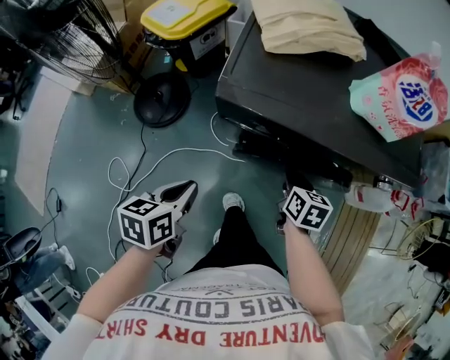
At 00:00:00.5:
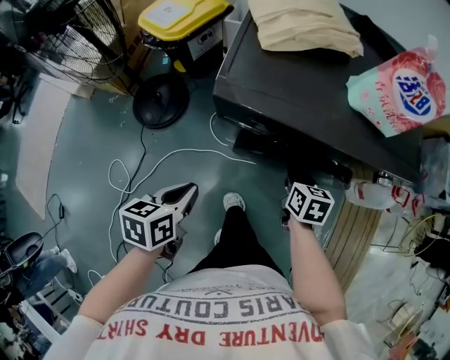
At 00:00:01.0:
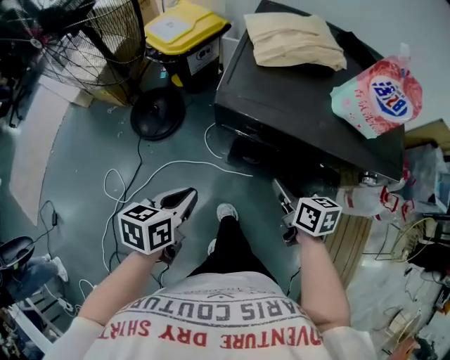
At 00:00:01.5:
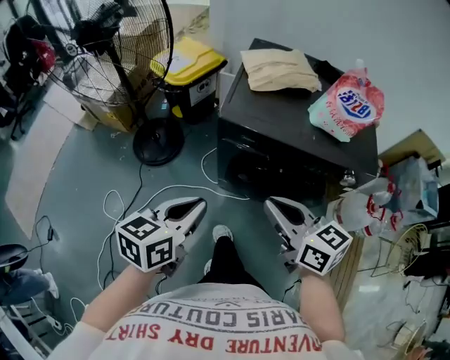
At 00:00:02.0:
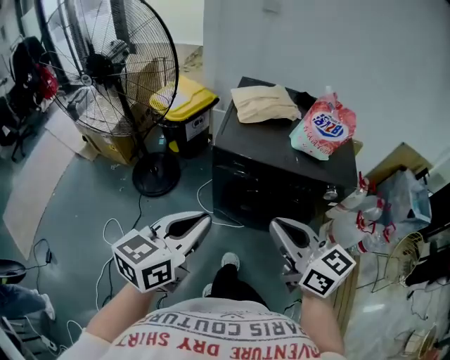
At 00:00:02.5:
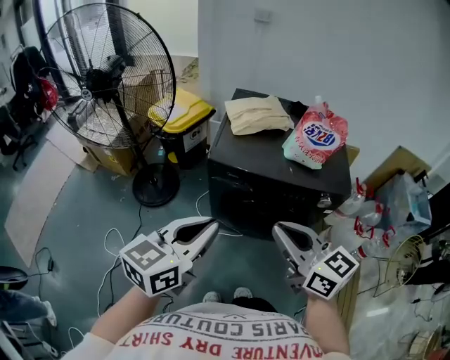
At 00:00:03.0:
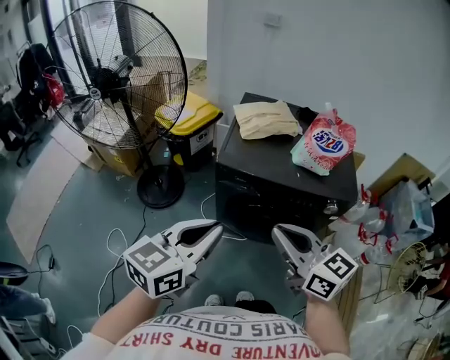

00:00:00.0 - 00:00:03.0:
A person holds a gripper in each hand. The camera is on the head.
00:00:00.0 - 00:00:01.5: The left gripper shifts about 15 cm upward and backward, and changes its angle by approximately 20 degrees. The right gripper shifts about 30 cm upward and backward, and tips its fingers upward by about 30 degrees.
00:00:01.5 - 00:00:03.0: Both grippers travel together upward, some 10 cm.

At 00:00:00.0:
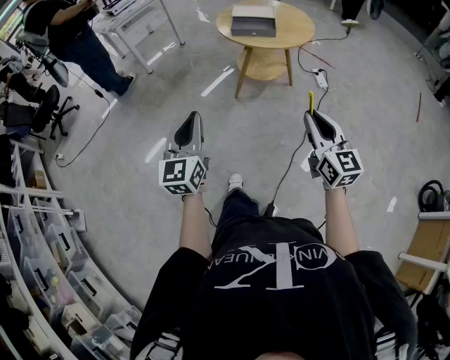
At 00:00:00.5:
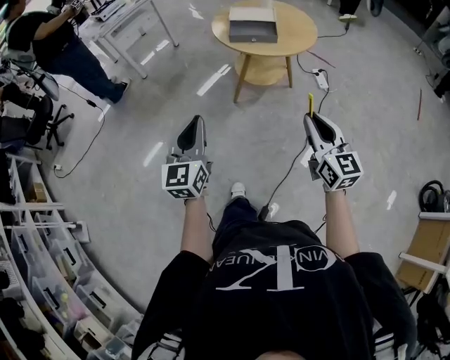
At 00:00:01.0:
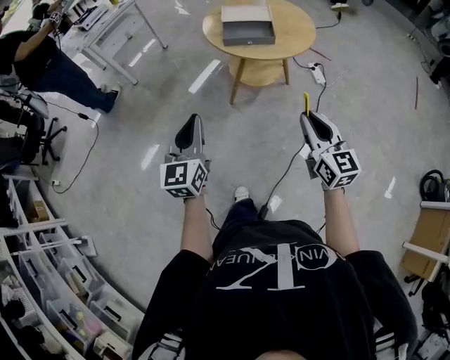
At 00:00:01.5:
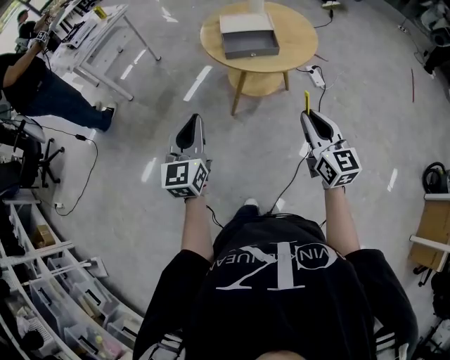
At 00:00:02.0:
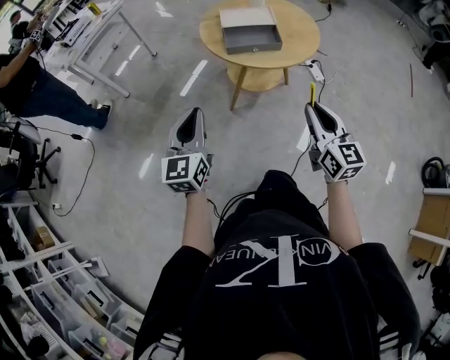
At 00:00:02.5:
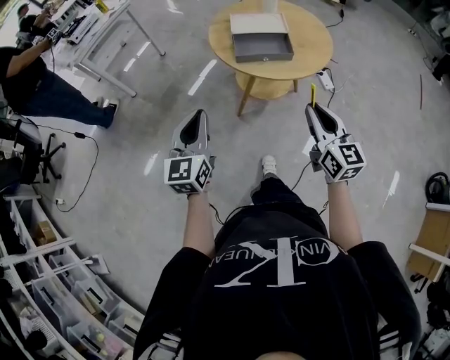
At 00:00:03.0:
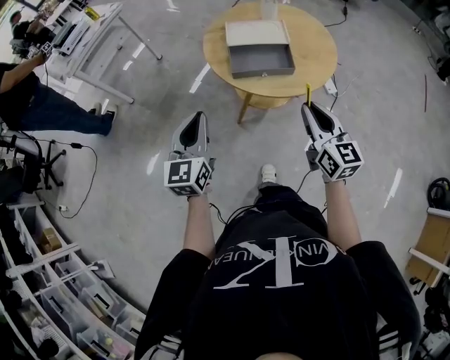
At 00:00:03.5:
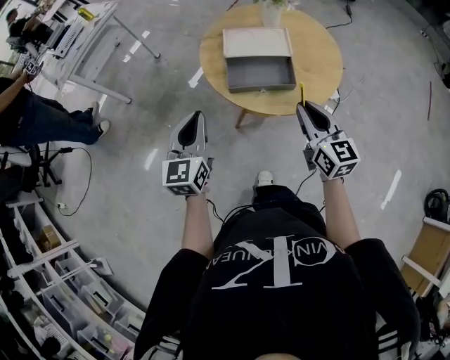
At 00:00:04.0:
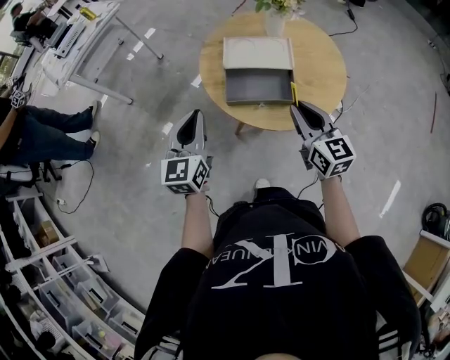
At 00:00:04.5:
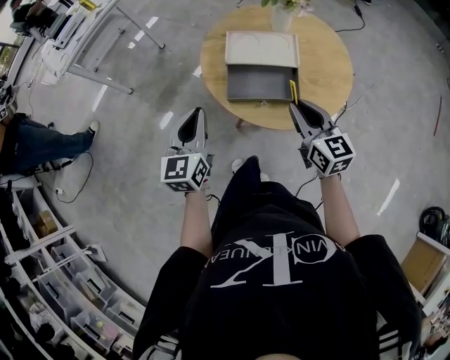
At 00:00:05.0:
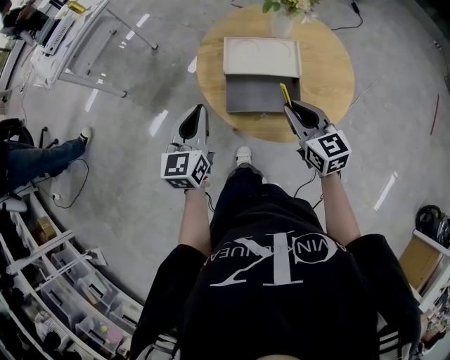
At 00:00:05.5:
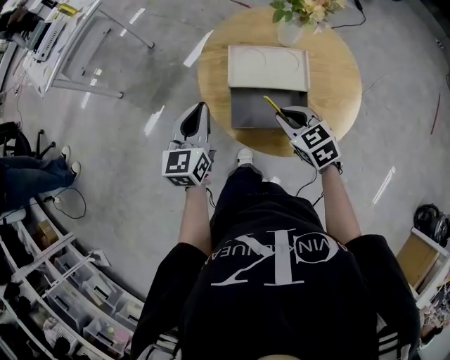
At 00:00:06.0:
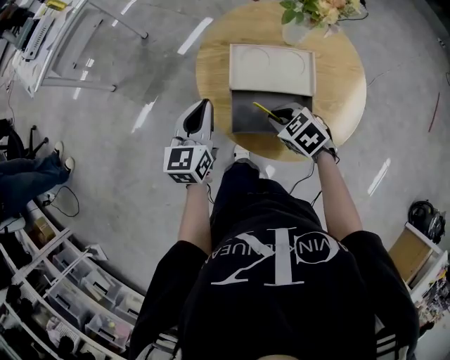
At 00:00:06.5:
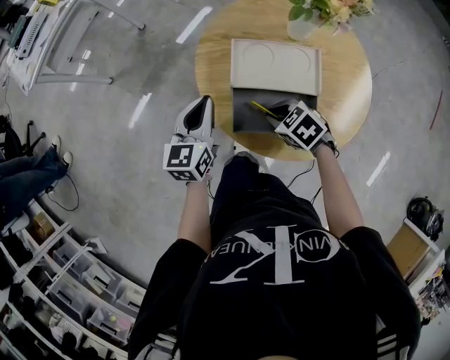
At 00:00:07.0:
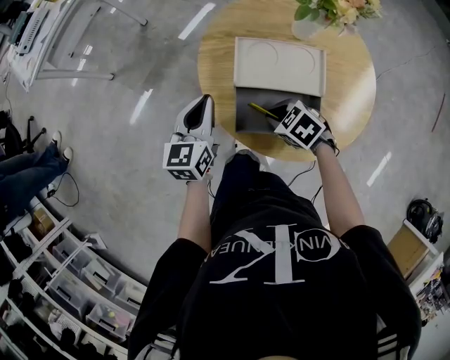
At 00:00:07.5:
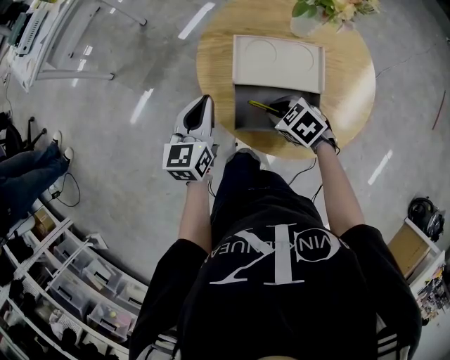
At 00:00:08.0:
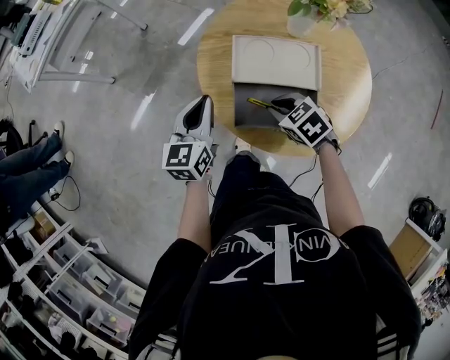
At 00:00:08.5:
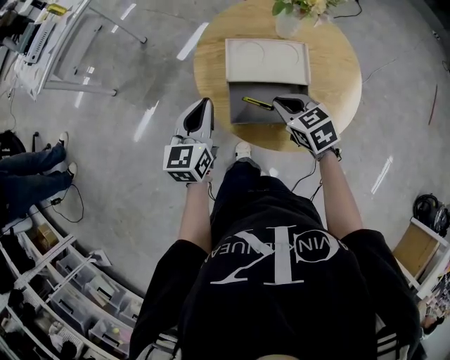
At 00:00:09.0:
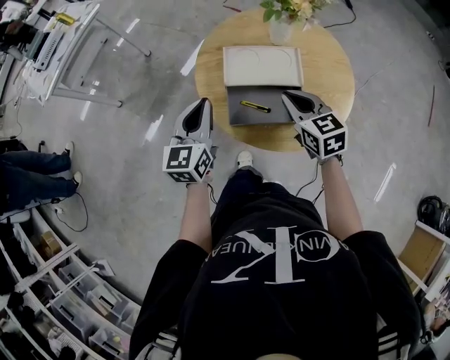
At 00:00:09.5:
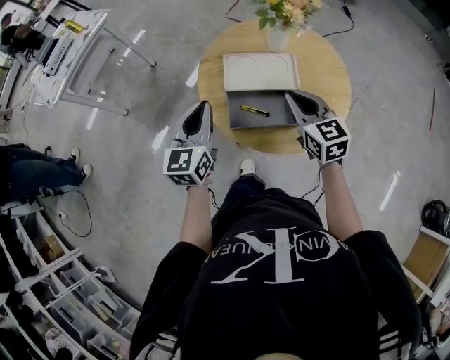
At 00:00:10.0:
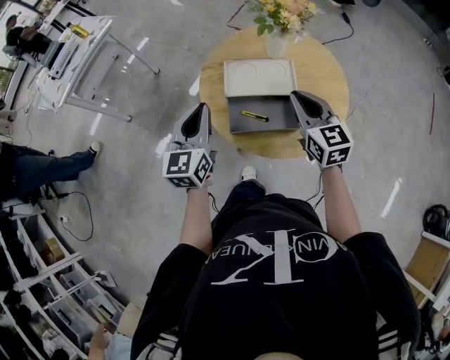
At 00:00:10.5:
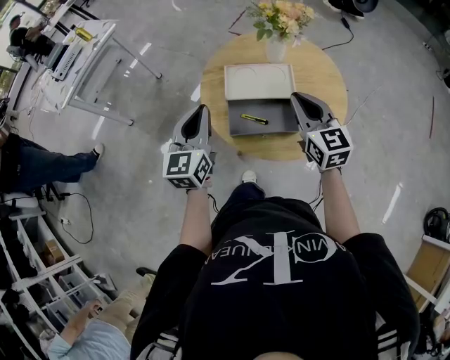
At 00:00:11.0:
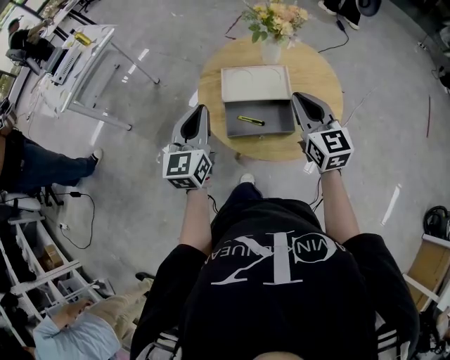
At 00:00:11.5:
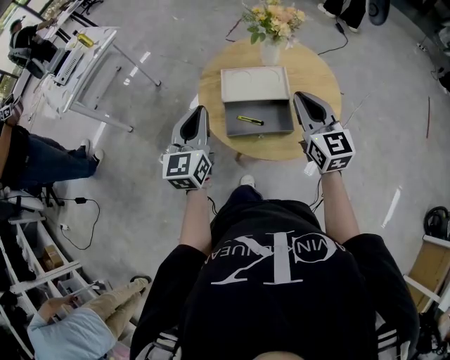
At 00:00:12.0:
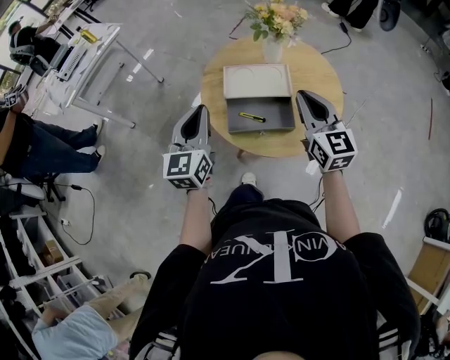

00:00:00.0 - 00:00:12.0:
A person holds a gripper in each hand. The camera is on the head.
00:00:00.0 - 00:00:02.0: The two grippers go some 30 cm forward.
00:00:02.0 - 00:00:04.0: The two grippers go some 30 cm forward.
00:00:04.0 - 00:00:06.0: The right gripper shifts roughly 20 cm downward, forward and to the left, and tips its fingers downward by some 50 degrees; the left gripper goes approximately 20 cm forward and downward.
00:00:06.0 - 00:00:08.0: There are only small adjustments of the grippers.
00:00:08.0 - 00:00:10.0: The left gripper moves upward, roughly 10 cm; the right gripper shifts approximately 20 cm upward and to the right, and angles its fingers upward, by about 40 degrees.
00:00:10.0 - 00:00:12.0: The right gripper shifts by roughly 5 cm.

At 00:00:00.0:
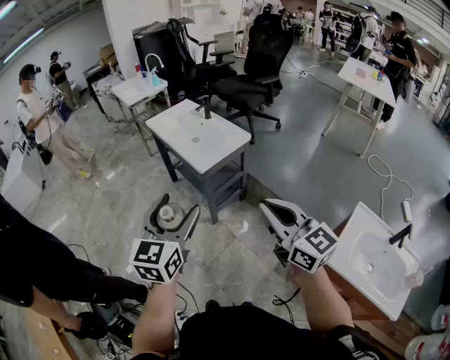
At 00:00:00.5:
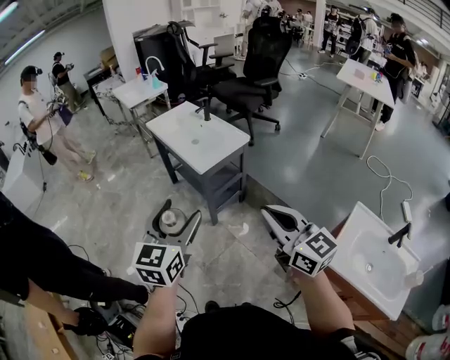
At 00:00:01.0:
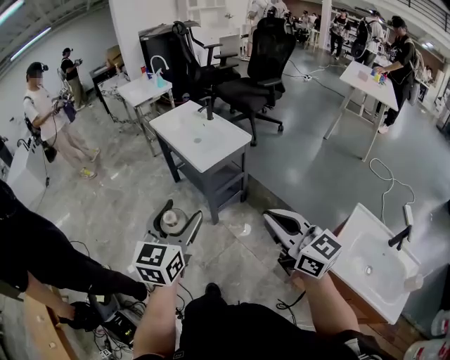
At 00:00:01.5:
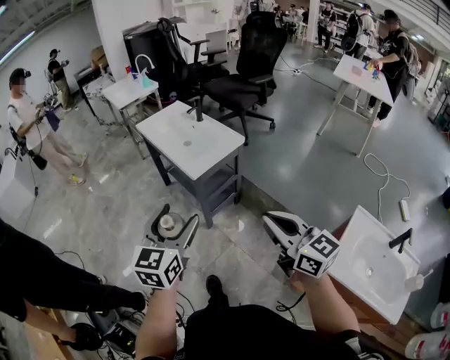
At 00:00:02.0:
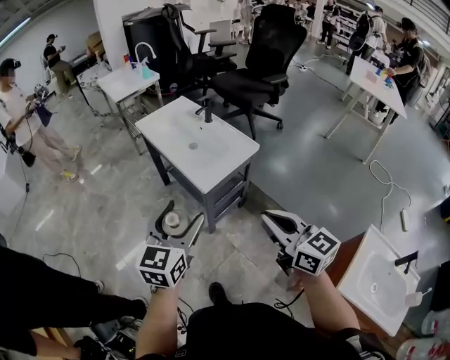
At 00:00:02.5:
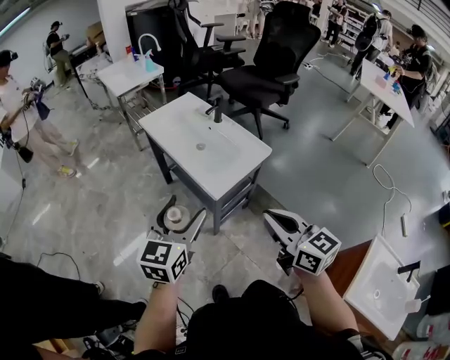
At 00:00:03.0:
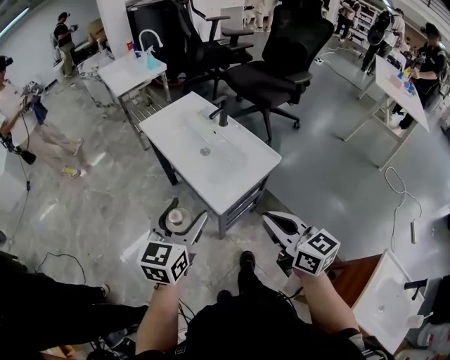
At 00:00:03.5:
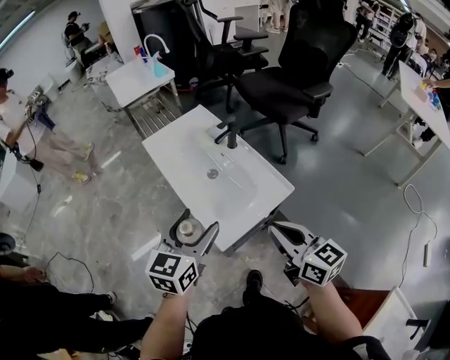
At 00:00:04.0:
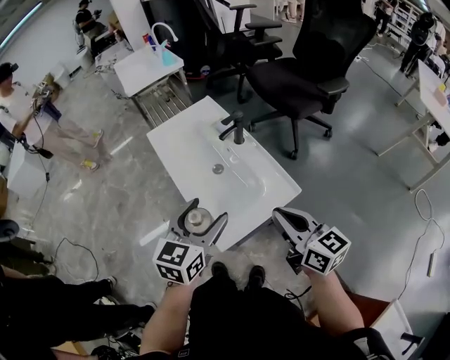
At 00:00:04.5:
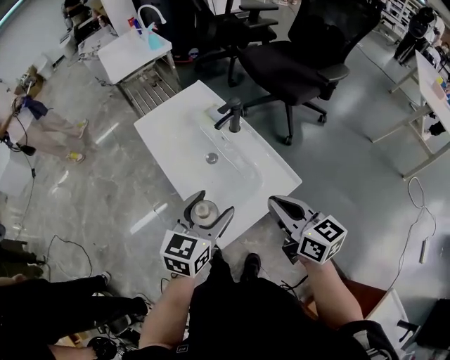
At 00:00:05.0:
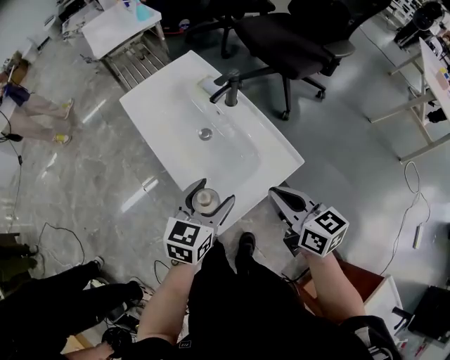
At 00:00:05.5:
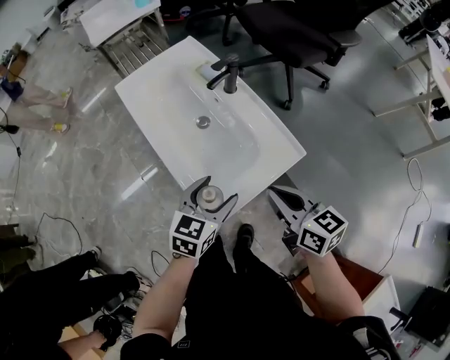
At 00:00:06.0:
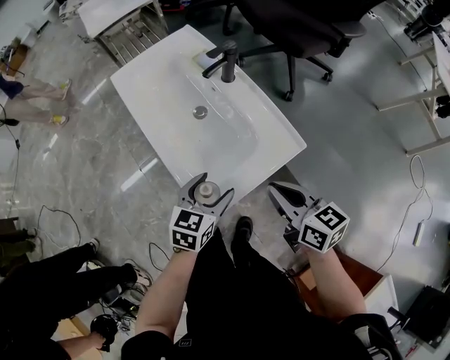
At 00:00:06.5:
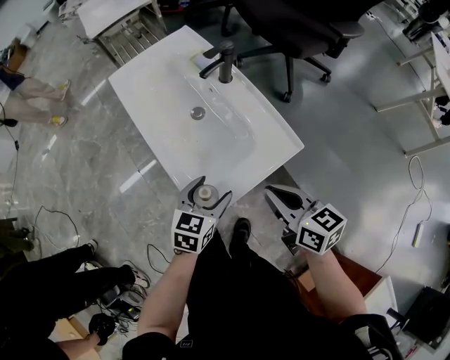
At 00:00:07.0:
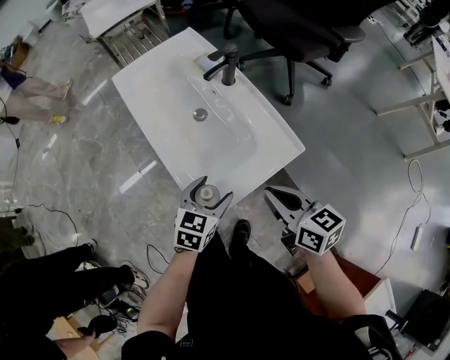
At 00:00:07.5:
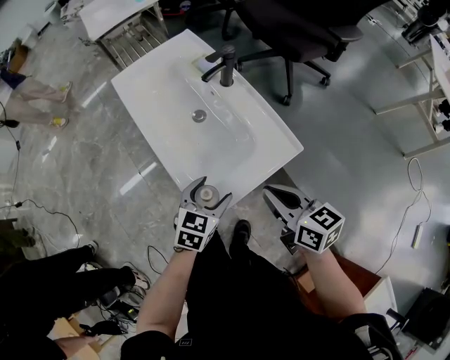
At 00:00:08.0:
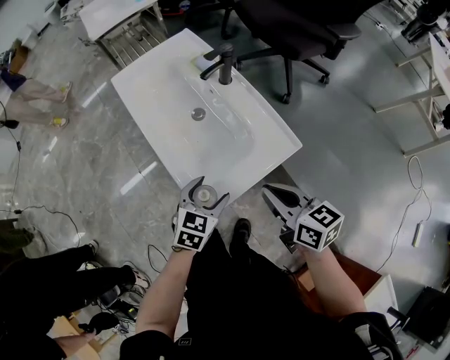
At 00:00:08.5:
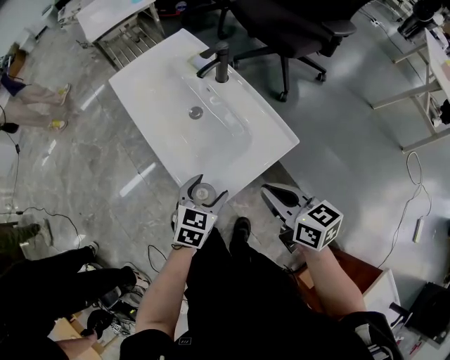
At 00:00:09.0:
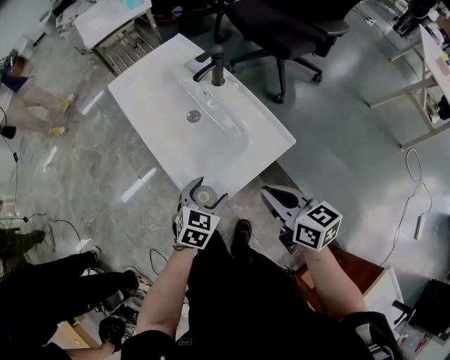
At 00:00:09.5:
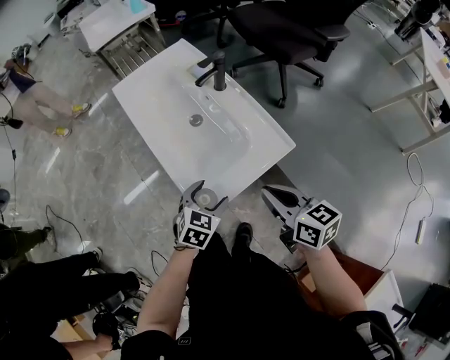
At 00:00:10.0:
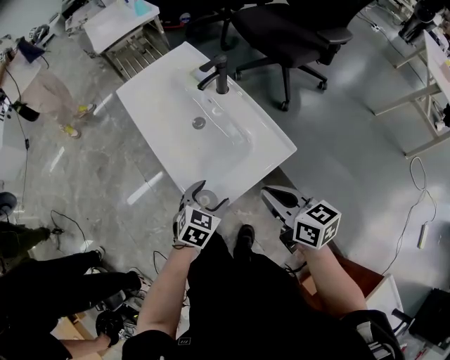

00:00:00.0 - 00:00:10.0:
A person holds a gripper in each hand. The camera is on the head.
00:00:00.0 - 00:00:02.0: The two grippers go approximately 20 cm forward.
00:00:02.0 - 00:00:04.0: The grippers both shift forward by approximately 35 cm.
00:00:04.0 - 00:00:06.0: The left gripper is displaced downward by approximately 20 cm. The right gripper moves downward, some 15 cm.
00:00:06.0 - 00:00:08.0: The grippers move only a little.
00:00:08.0 - 00:00:10.0: The grippers make only small movements.

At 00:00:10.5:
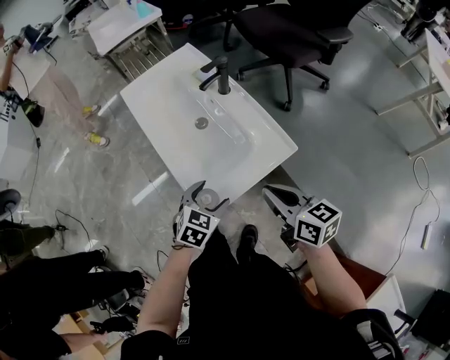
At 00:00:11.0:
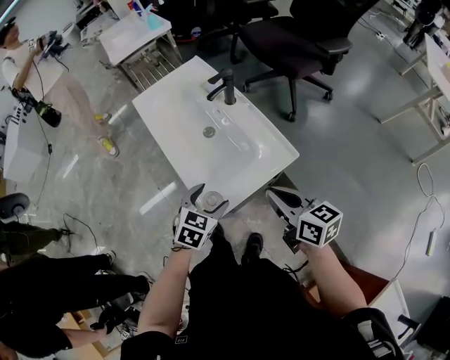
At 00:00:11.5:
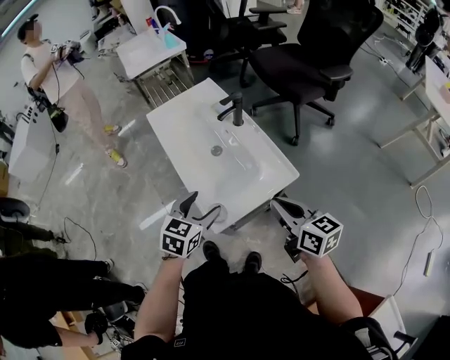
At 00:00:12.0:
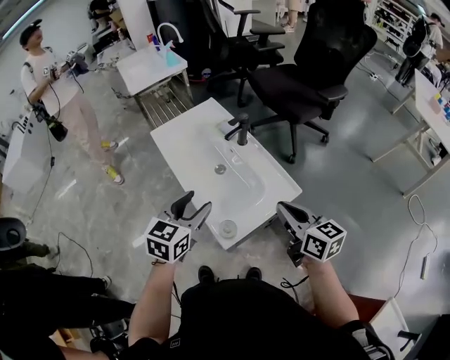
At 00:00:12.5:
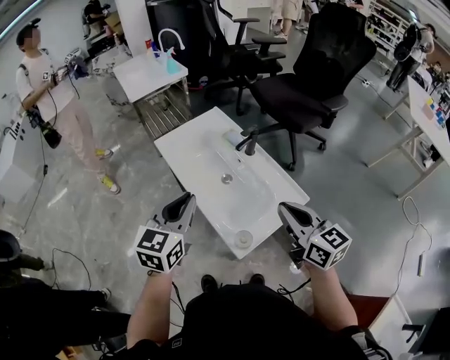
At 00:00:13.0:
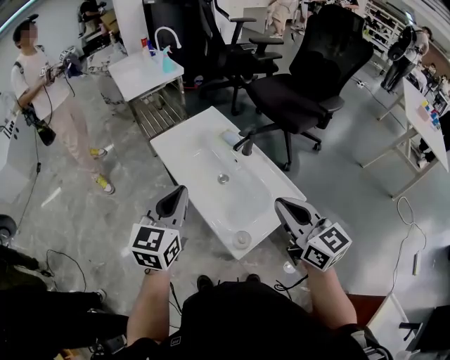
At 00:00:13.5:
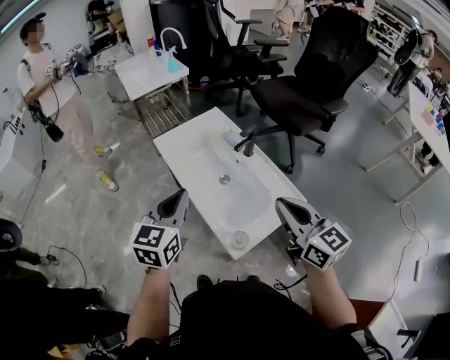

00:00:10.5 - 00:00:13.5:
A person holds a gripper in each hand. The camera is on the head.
00:00:10.5 - 00:00:12.0: The right gripper moves upward, roughly 10 cm; the left gripper is displaced upward and to the left by roughly 25 cm, and rotates approximately 20 degrees.
00:00:12.0 - 00:00:13.5: The right gripper is displaced upward and to the left by approximately 10 cm, while the left gripper goes approximately 10 cm to the left and upward, and closes up.
